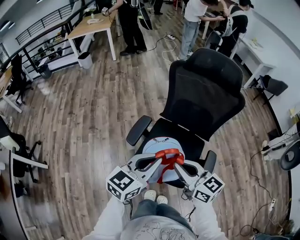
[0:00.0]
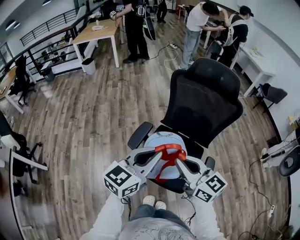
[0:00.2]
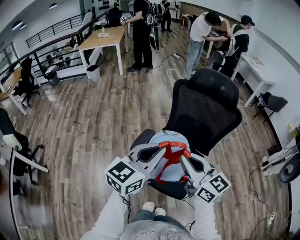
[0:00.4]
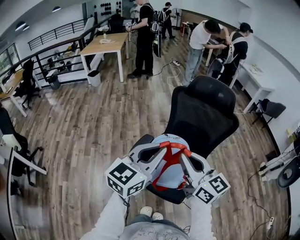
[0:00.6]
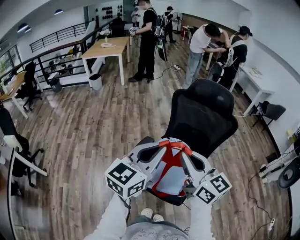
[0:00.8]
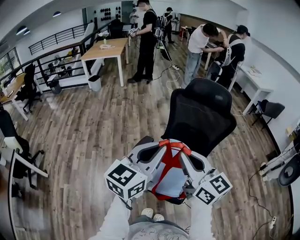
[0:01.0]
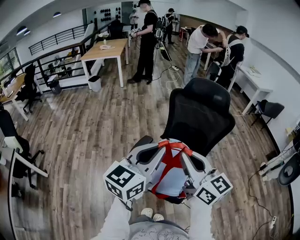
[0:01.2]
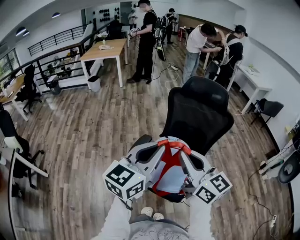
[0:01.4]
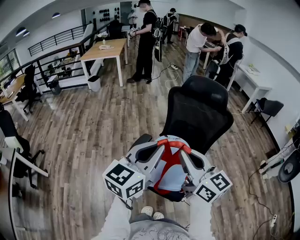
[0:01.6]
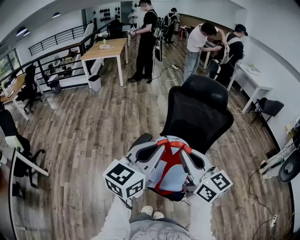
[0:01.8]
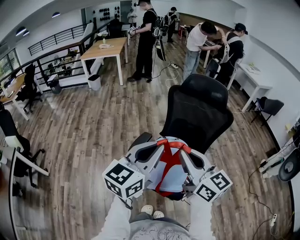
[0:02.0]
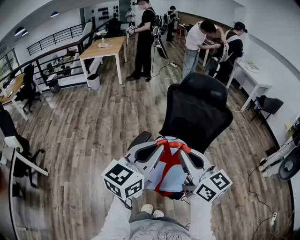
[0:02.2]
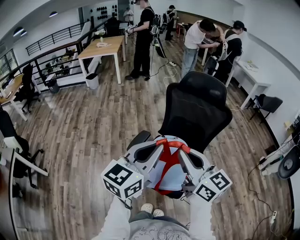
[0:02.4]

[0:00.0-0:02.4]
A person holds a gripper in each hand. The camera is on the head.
0:00.0 to 0:01.2: The grippers both shift upward by roughly 15 cm.
0:01.2 to 0:02.4: The grippers stay close to where they were, moving slightly.

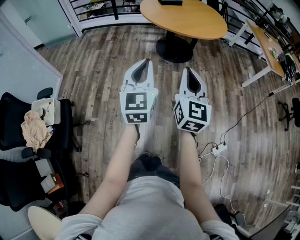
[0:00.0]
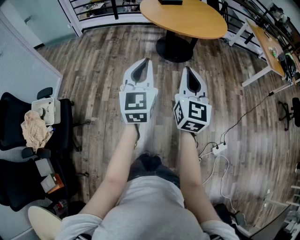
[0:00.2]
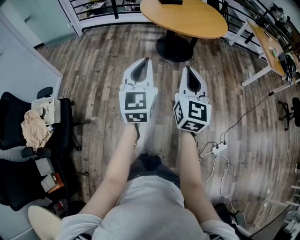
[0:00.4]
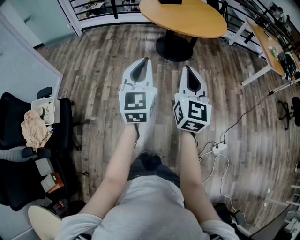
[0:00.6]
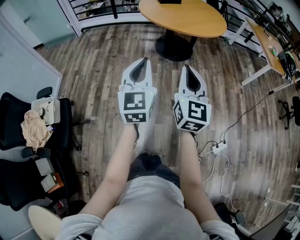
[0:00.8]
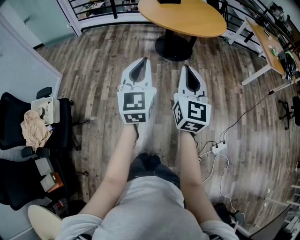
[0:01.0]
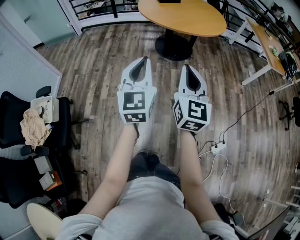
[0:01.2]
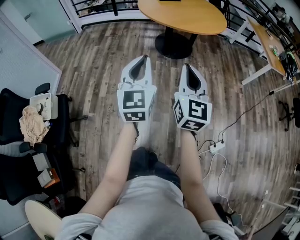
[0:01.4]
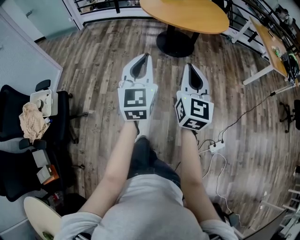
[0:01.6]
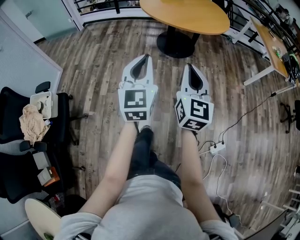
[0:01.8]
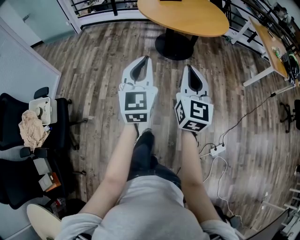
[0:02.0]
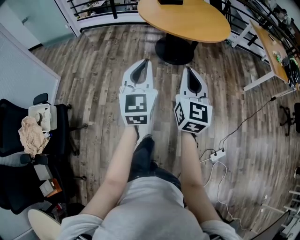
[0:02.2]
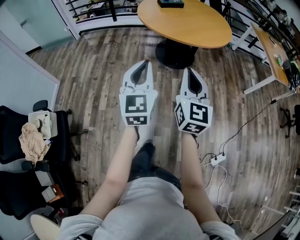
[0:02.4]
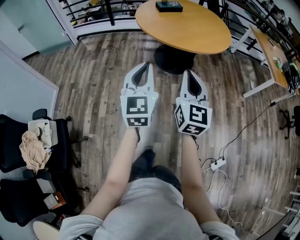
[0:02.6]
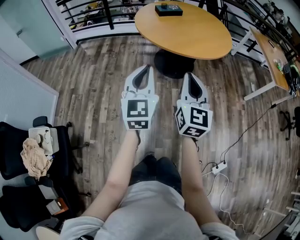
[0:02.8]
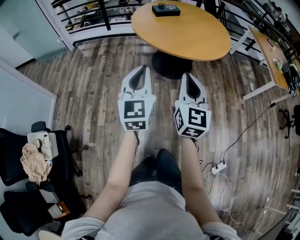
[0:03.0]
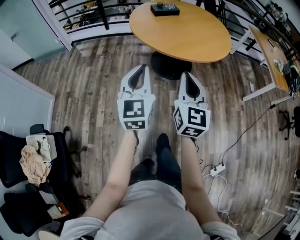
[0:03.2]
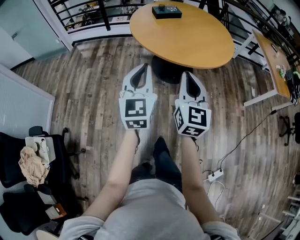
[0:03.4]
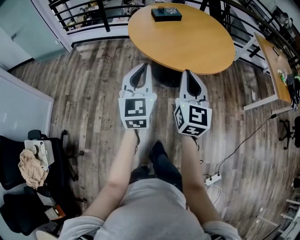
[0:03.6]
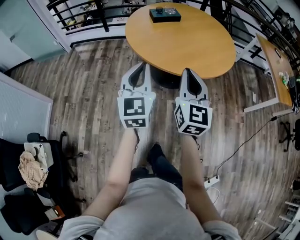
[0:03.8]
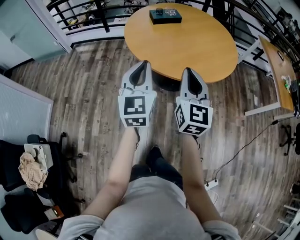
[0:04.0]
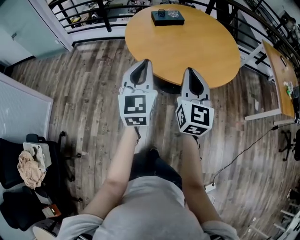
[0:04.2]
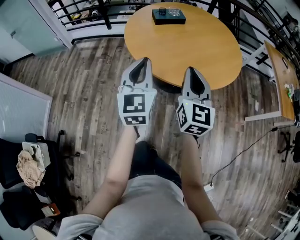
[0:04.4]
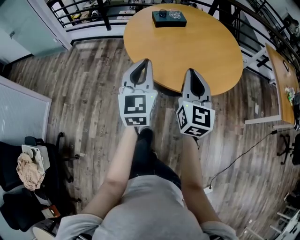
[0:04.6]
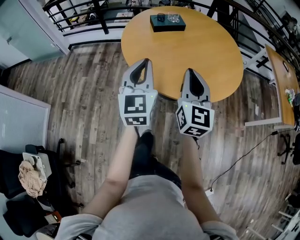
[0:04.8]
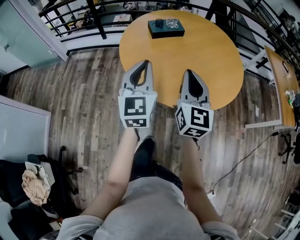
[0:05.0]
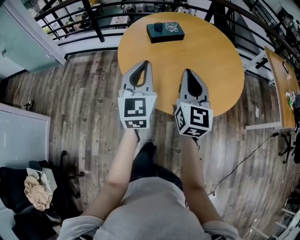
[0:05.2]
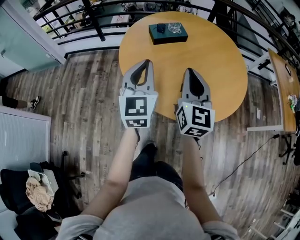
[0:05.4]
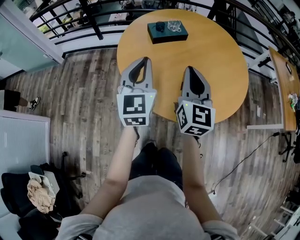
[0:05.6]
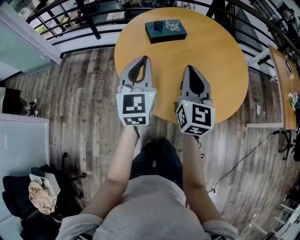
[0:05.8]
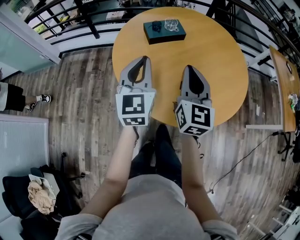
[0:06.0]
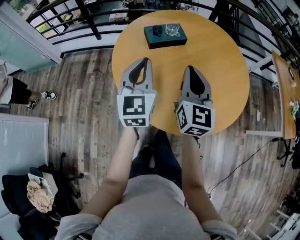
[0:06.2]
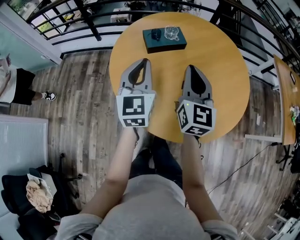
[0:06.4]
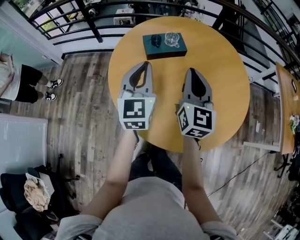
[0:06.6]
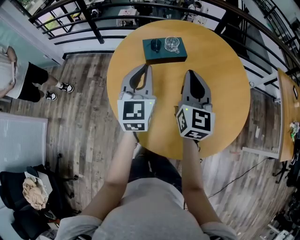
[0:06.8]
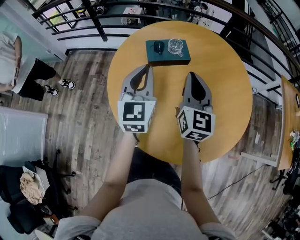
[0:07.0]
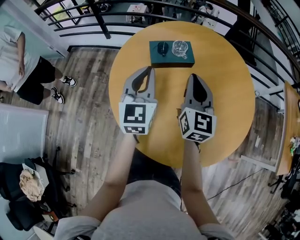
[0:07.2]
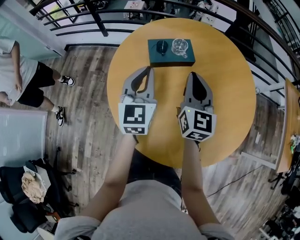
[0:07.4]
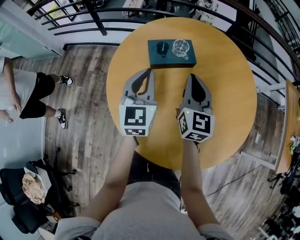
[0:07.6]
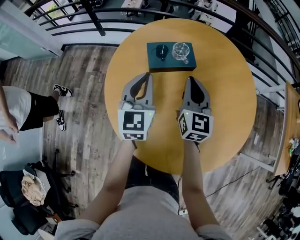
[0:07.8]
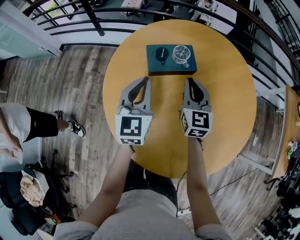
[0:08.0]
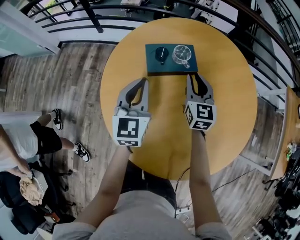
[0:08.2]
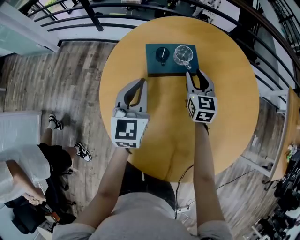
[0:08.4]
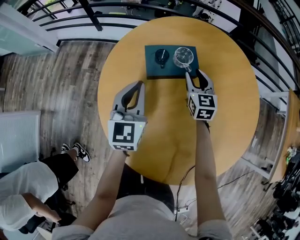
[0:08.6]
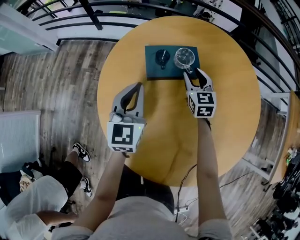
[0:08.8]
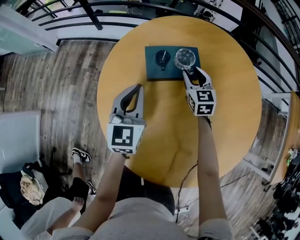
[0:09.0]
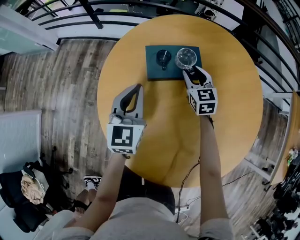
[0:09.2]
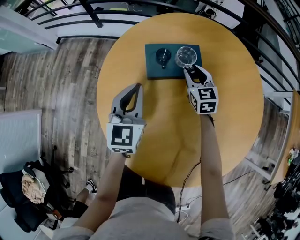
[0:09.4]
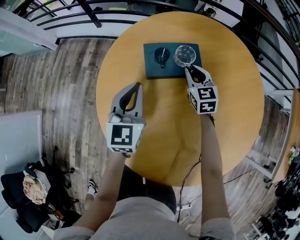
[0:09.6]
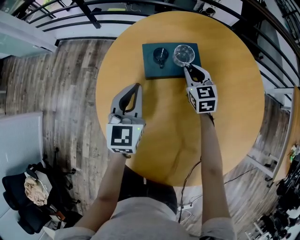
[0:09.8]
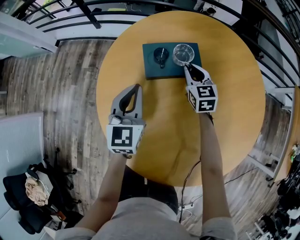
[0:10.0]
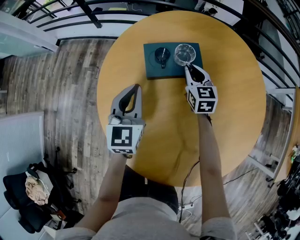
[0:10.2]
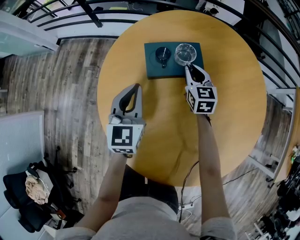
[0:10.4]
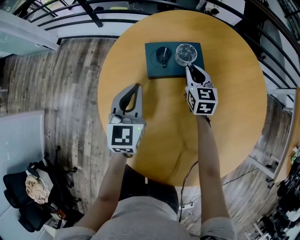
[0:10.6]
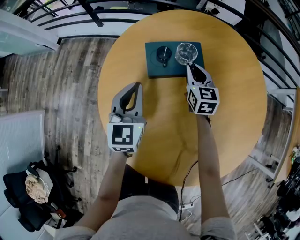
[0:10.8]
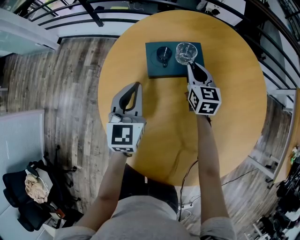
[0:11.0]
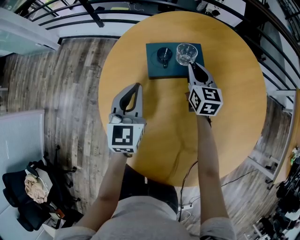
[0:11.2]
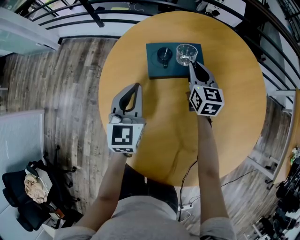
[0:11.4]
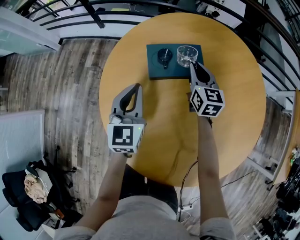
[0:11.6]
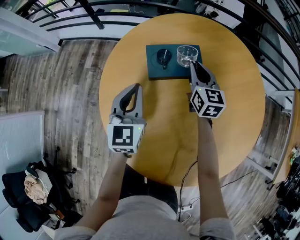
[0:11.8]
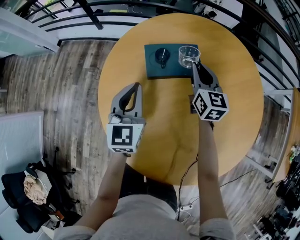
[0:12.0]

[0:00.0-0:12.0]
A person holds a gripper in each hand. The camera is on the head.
0:00.0 to 0:01.6: The grippers make only small movements.
0:01.6 to 0:03.0: Both grippers travel together forward, approximately 25 cm.
0:03.0 to 0:04.4: The two grippers go roughly 30 cm forward.
0:04.4 to 0:06.0: The two grippers go approximately 30 cm forward.
0:06.0 to 0:07.6: The two grippers go roughly 20 cm forward.
0:07.6 to 0:09.0: The left gripper moves downward and forward, about 10 cm. The right gripper goes approximately 25 cm forward and downward, turns by about 30 degrees, and opens.
0:09.0 to 0:10.4: The right gripper closes its fingers.
0:10.4 to 0:12.0: The right gripper moves upward, approximately 10 cm.

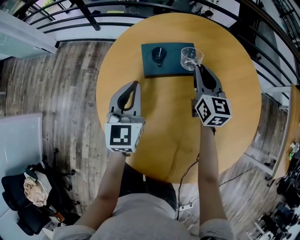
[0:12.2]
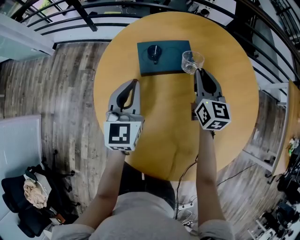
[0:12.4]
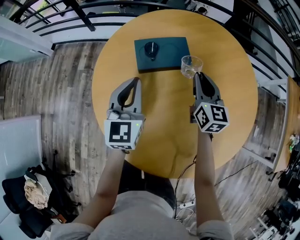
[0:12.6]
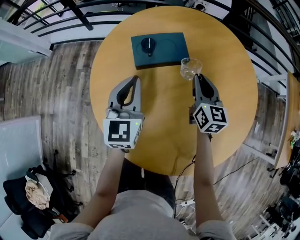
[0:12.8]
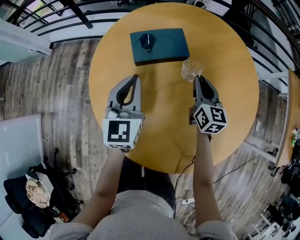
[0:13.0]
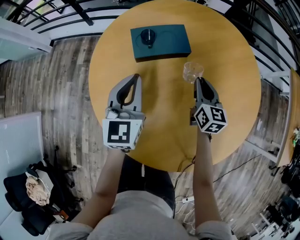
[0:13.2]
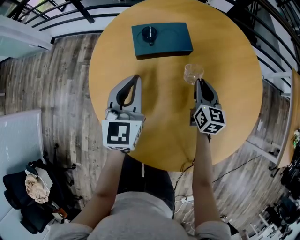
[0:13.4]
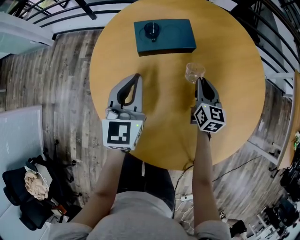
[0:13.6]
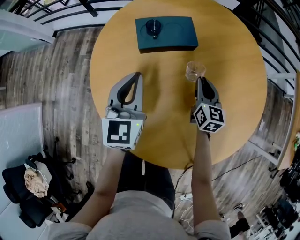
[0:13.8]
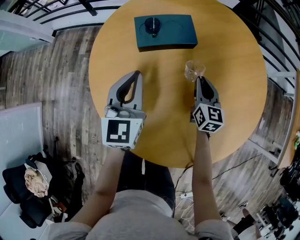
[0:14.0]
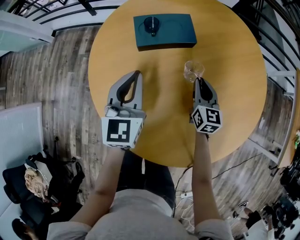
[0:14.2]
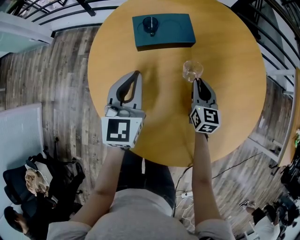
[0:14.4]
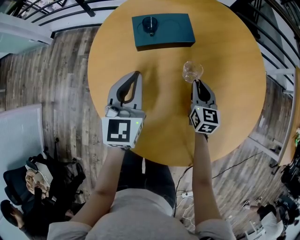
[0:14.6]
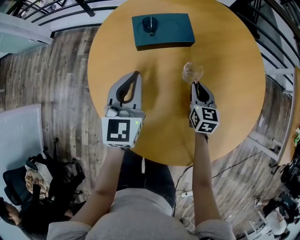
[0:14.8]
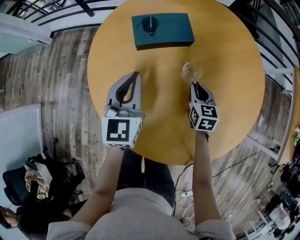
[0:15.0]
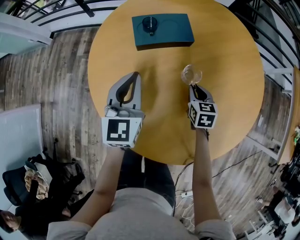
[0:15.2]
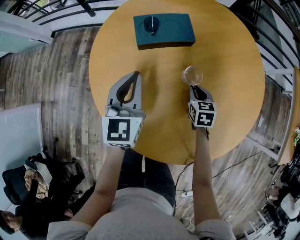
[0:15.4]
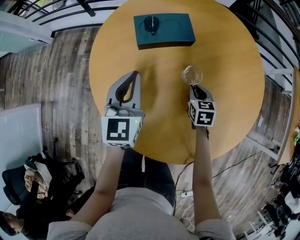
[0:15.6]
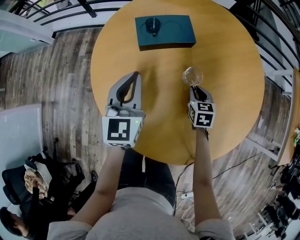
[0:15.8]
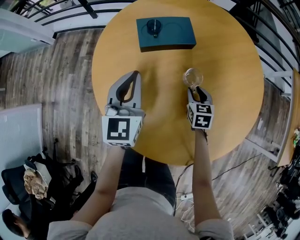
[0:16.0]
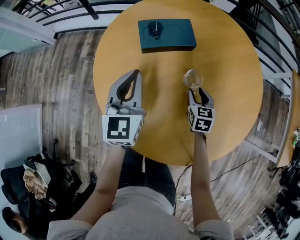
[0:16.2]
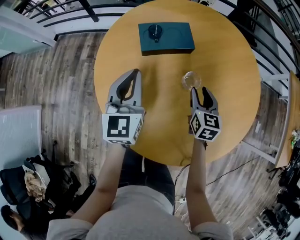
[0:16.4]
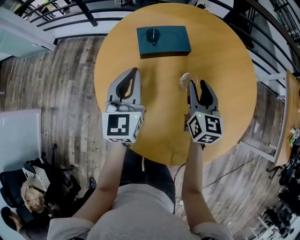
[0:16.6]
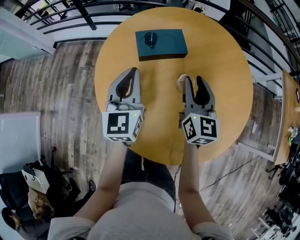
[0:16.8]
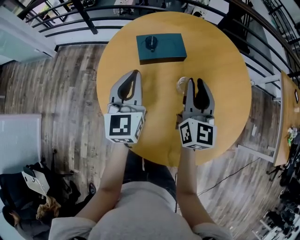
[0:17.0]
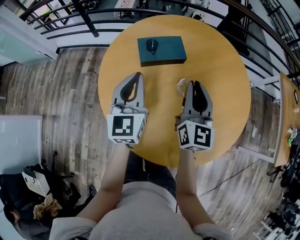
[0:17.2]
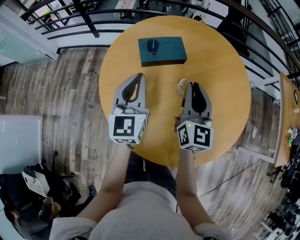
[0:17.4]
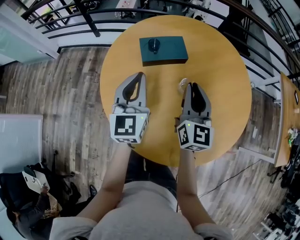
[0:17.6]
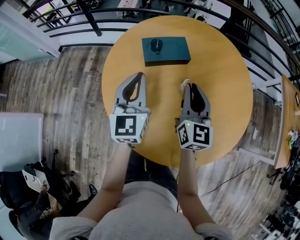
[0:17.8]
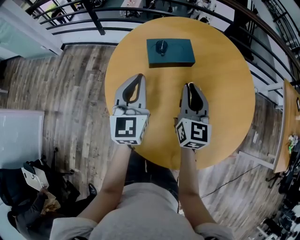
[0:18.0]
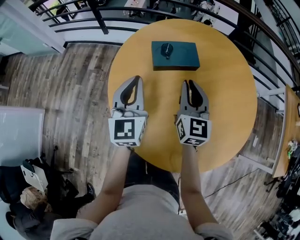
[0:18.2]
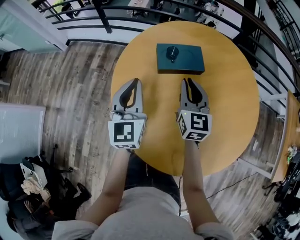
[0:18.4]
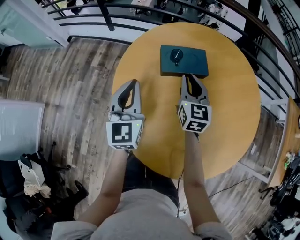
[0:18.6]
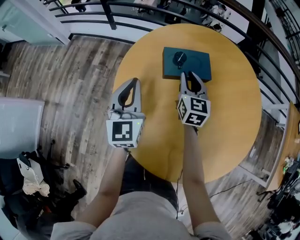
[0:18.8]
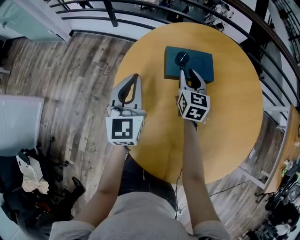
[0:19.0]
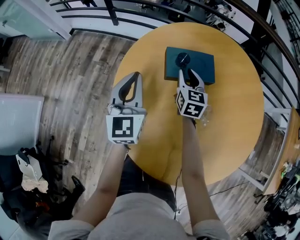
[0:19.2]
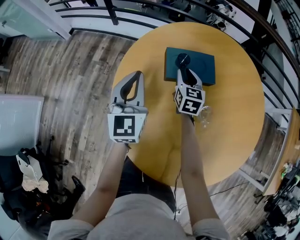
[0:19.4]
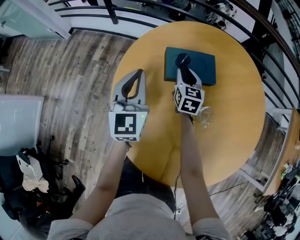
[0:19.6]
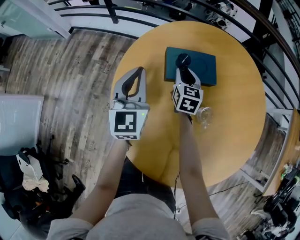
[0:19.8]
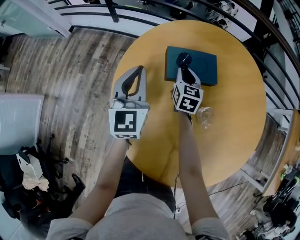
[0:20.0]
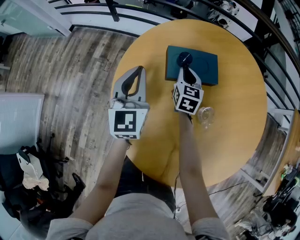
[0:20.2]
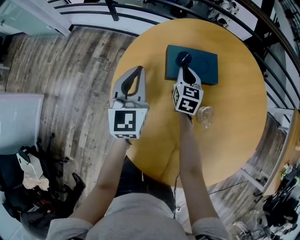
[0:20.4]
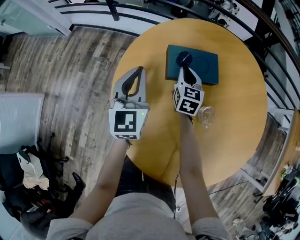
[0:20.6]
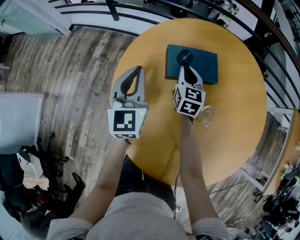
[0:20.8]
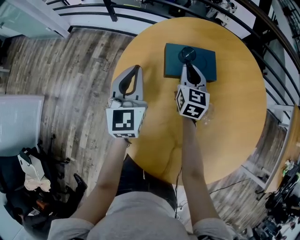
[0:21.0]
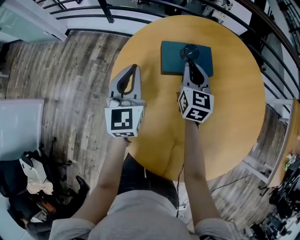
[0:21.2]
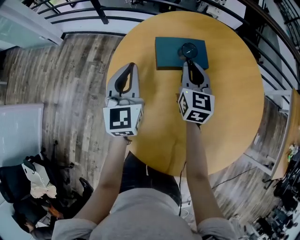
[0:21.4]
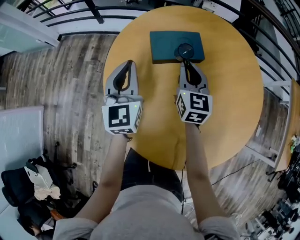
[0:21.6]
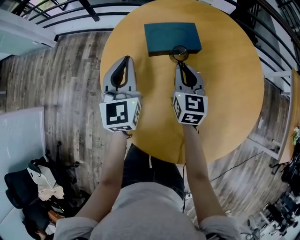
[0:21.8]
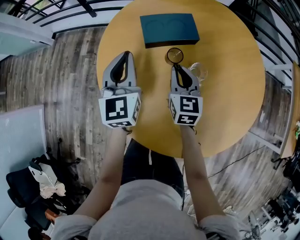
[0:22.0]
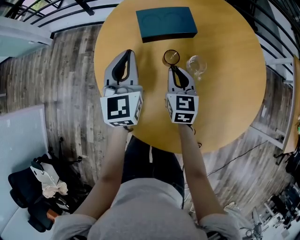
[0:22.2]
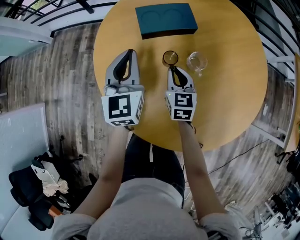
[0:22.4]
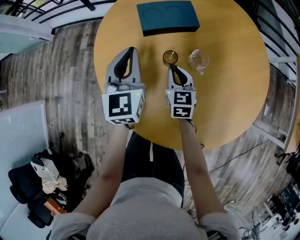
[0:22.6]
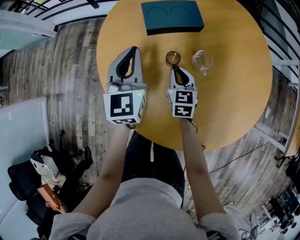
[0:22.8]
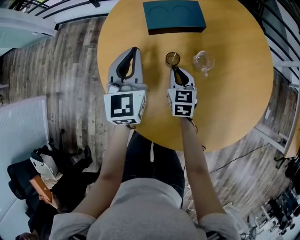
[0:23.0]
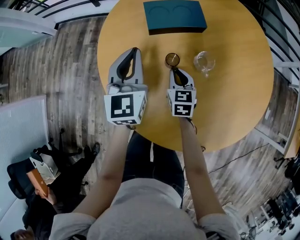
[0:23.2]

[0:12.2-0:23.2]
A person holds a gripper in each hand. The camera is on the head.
0:12.2 to 0:13.8: The right gripper travels downward, backward and to the right by roughly 20 cm. Meanwhile the left gripper moves backward, approximately 5 cm.
0:13.8 to 0:15.4: The right gripper moves downward, roughly 5 cm, and swivels roughly 30 degrees.
0:15.4 to 0:17.0: The right gripper is displaced upward by some 25 cm, and angles its fingers upward, by roughly 50 degrees; the left gripper is displaced upward by about 10 cm.
0:17.0 to 0:18.4: The right gripper goes approximately 10 cm to the left and forward; the left gripper shifts about 10 cm to the left.
0:18.4 to 0:20.0: The right gripper is displaced forward and downward by about 20 cm. The left gripper moves forward, about 10 cm.
0:20.0 to 0:21.6: The left gripper changes place by some 5 cm, while the right gripper is displaced backward and upward by about 15 cm.
0:21.6 to 0:23.2: The right gripper moves downward and backward, roughly 20 cm; the left gripper travels backward by some 5 cm.
